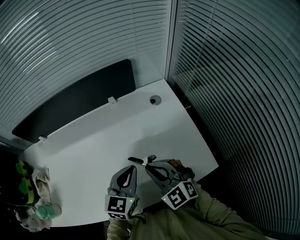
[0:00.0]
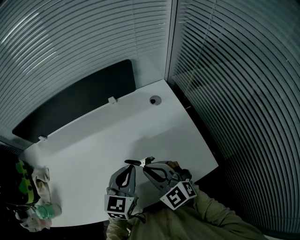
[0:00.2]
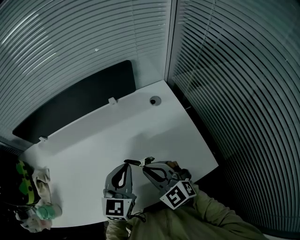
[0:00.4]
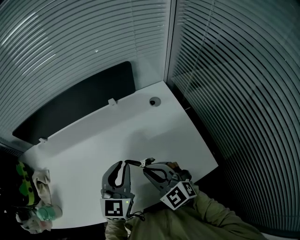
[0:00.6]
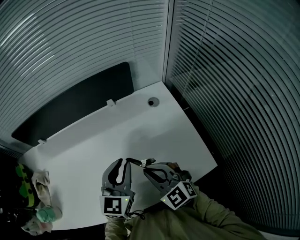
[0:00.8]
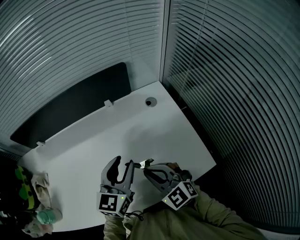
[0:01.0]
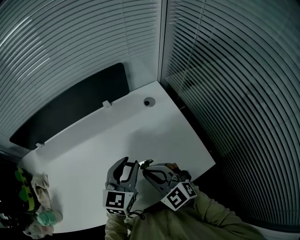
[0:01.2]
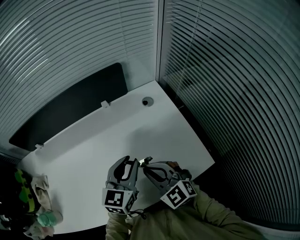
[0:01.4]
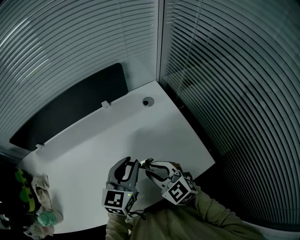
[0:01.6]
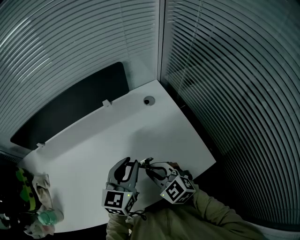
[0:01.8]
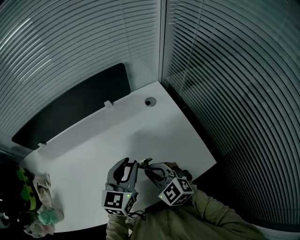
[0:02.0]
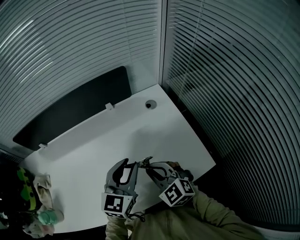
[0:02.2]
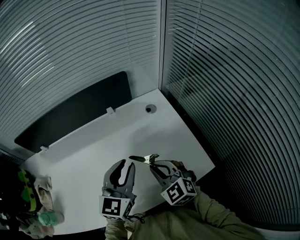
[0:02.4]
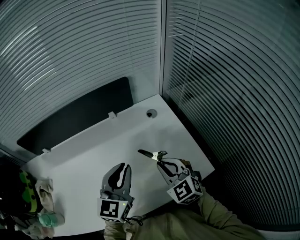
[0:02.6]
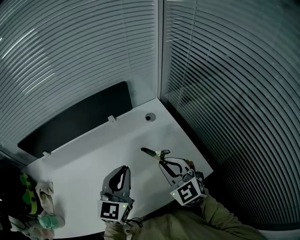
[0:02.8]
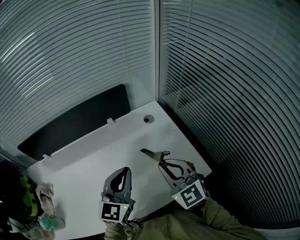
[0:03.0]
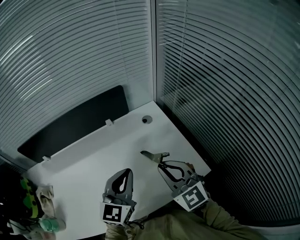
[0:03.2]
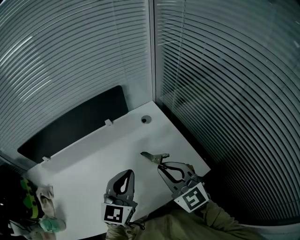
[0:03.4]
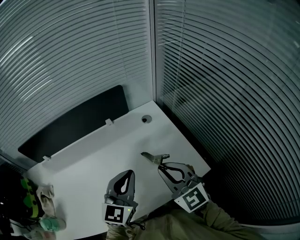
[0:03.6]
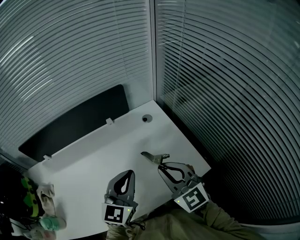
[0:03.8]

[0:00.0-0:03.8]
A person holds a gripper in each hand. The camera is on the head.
0:00.0 to 0:01.2: The left gripper opens up.
0:01.2 to 0:02.6: The right gripper travels to the right by roughly 5 cm, while the left gripper is displaced upward by some 5 cm.
0:02.6 to 0:03.8: The right gripper moves upward, roughly 10 cm.

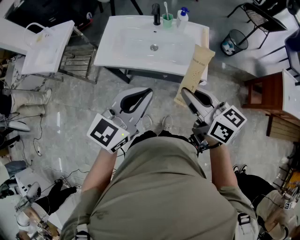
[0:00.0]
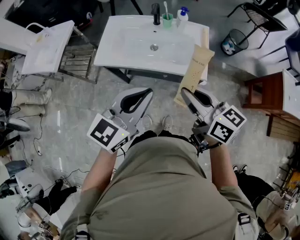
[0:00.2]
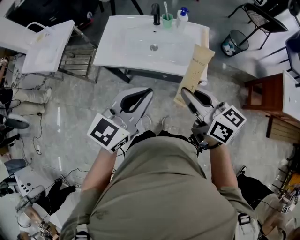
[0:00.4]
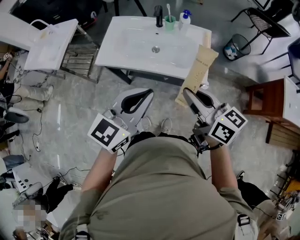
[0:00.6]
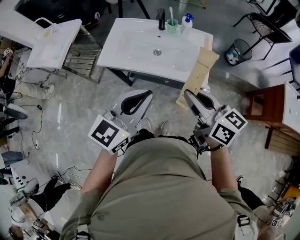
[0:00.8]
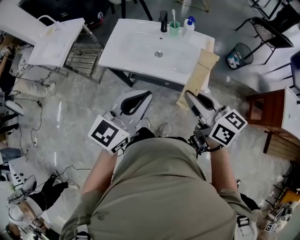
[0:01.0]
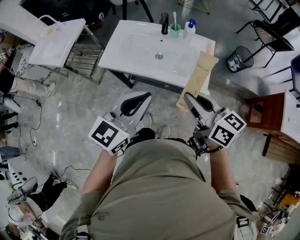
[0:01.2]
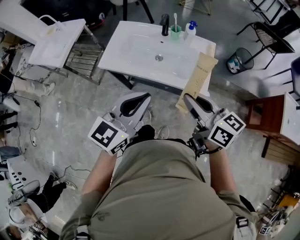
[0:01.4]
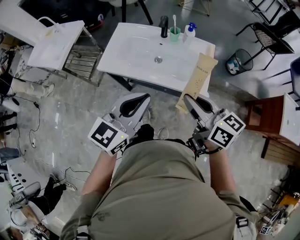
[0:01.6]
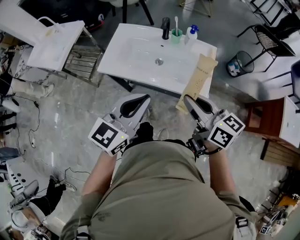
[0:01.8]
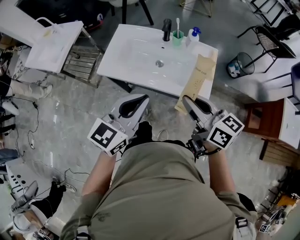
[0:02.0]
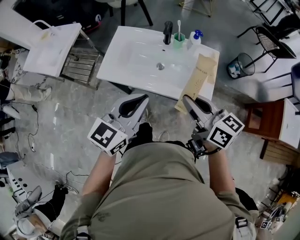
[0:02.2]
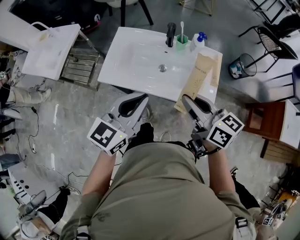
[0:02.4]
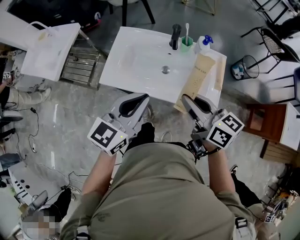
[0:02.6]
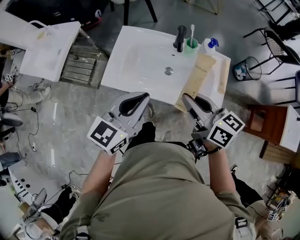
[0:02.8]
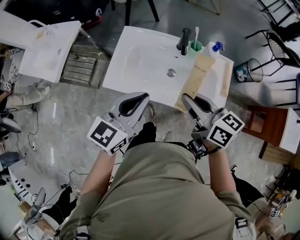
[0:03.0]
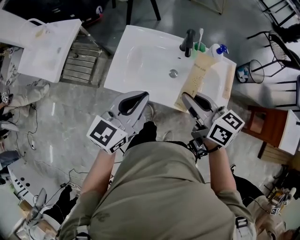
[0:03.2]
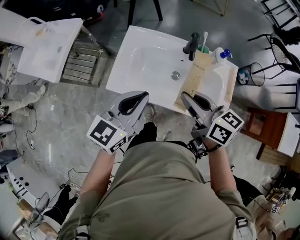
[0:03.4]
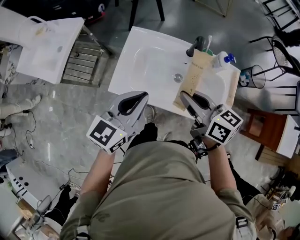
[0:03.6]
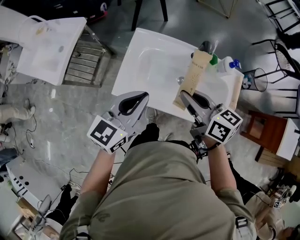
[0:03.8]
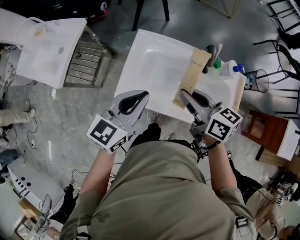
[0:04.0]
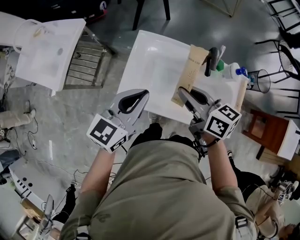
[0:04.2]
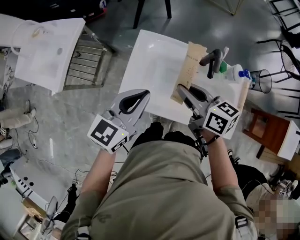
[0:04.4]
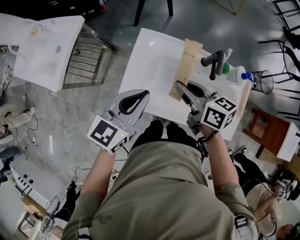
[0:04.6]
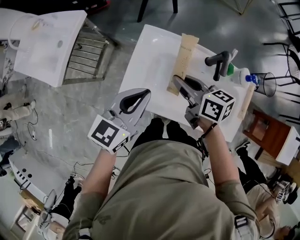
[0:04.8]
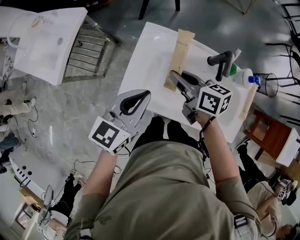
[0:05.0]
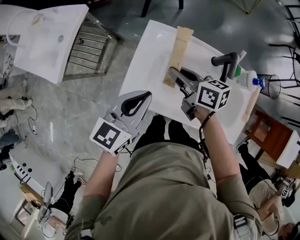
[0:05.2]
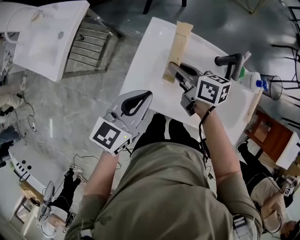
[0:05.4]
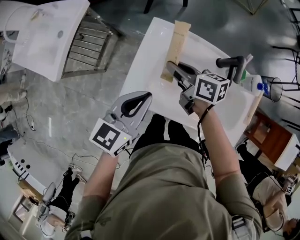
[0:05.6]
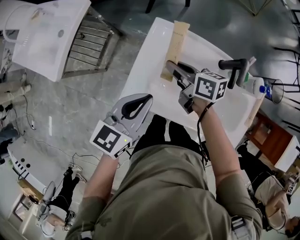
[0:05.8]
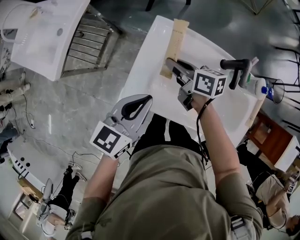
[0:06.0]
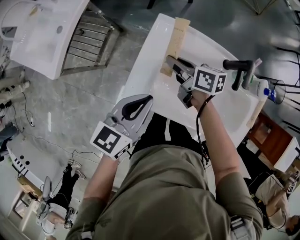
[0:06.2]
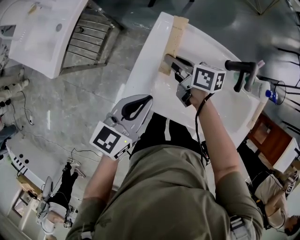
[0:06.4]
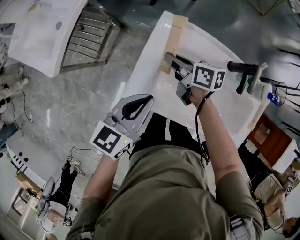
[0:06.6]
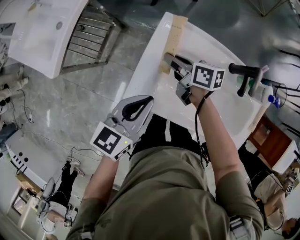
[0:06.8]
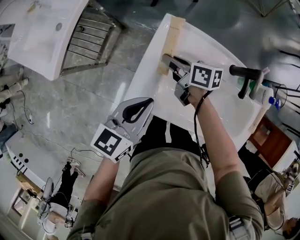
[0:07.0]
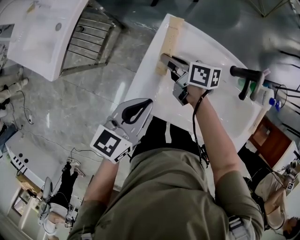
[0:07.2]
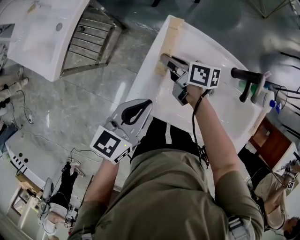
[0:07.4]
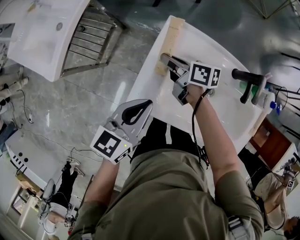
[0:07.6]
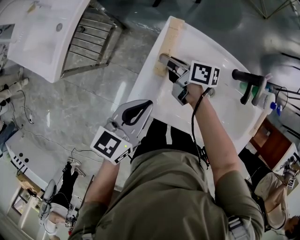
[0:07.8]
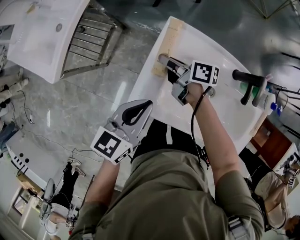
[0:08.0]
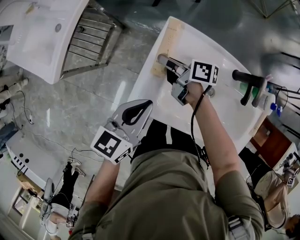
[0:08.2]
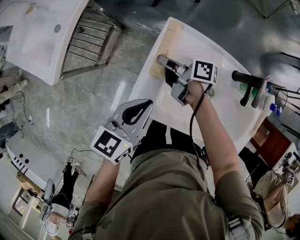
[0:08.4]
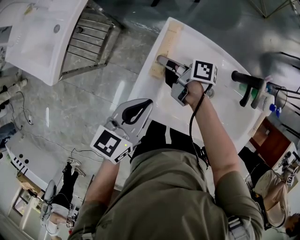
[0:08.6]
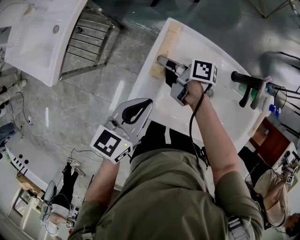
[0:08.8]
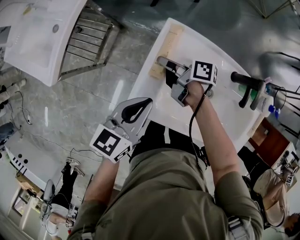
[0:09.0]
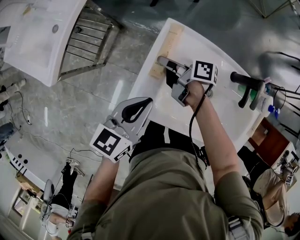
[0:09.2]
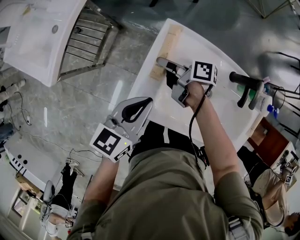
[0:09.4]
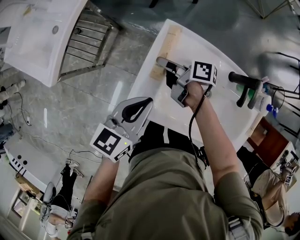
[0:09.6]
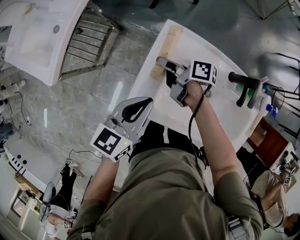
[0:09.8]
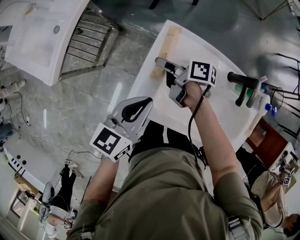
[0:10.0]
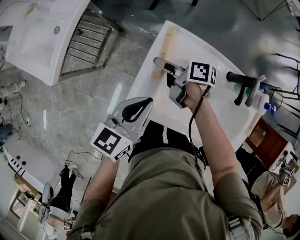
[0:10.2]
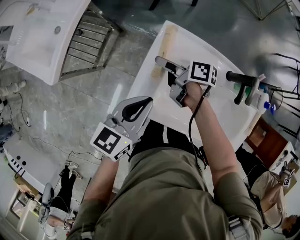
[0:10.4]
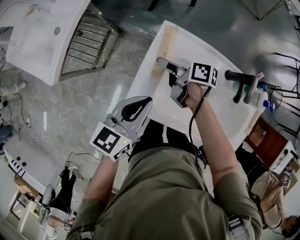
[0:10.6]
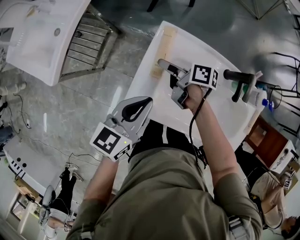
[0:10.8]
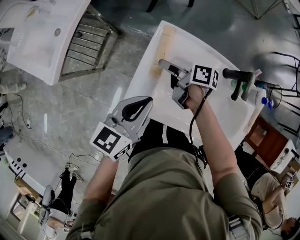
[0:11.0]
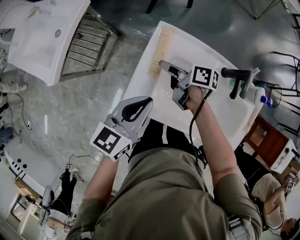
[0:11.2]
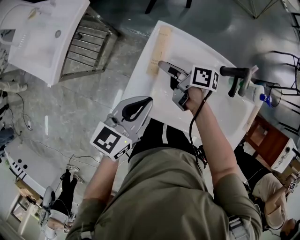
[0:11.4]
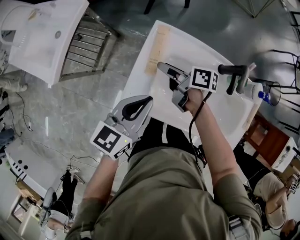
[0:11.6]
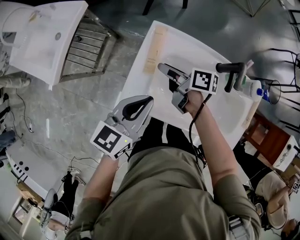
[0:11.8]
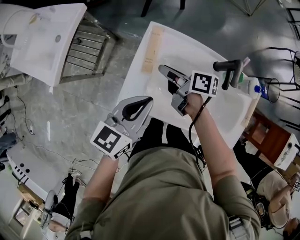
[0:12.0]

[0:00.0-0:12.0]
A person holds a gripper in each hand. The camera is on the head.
0:00.0 to 0:01.6: The right gripper ends up about 5 cm from where it was.
0:01.6 to 0:03.0: Both grippers move forward and to the left, some 20 cm.
0:03.0 to 0:04.4: The grippers both shift forward and to the left by about 20 cm.
0:04.4 to 0:06.0: The right gripper shifts some 20 cm downward, forward and to the left, while the left gripper goes approximately 10 cm downward.
0:06.0 to 0:07.6: The left gripper shifts by about 5 cm. The right gripper heads downward and to the left, covering some 10 cm.
0:07.6 to 0:09.0: The grippers stay close to where they were, moving slightly.
0:09.0 to 0:10.4: The right gripper opens its fingers.
0:10.4 to 0:12.0: The left gripper shifts by approximately 5 cm; the right gripper heads backward and upward, covering roughly 10 cm, and closes up.

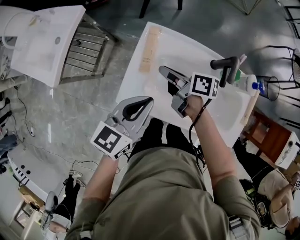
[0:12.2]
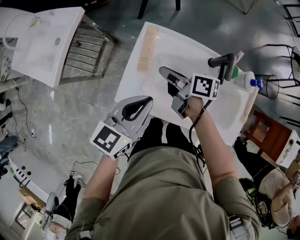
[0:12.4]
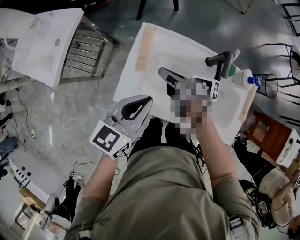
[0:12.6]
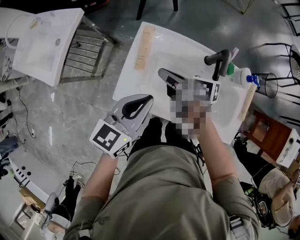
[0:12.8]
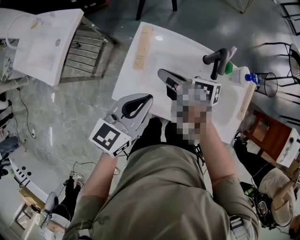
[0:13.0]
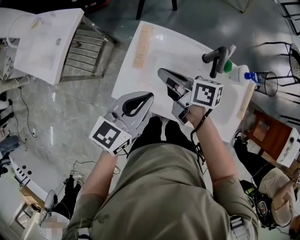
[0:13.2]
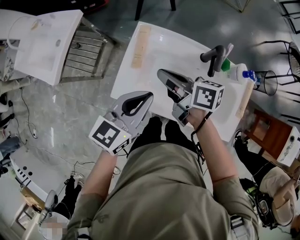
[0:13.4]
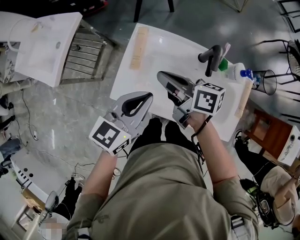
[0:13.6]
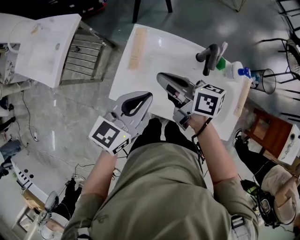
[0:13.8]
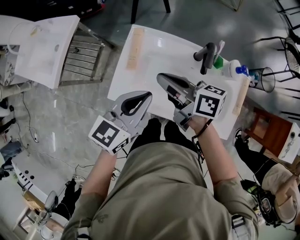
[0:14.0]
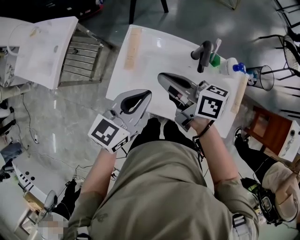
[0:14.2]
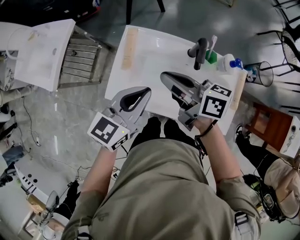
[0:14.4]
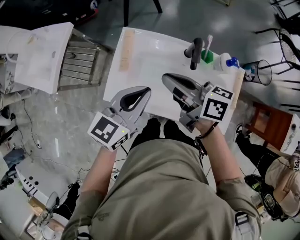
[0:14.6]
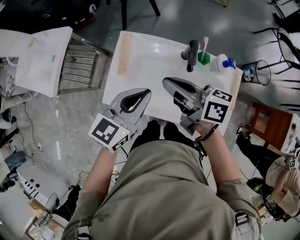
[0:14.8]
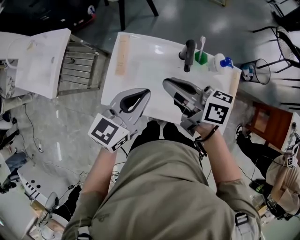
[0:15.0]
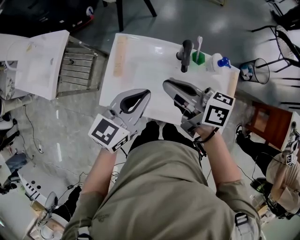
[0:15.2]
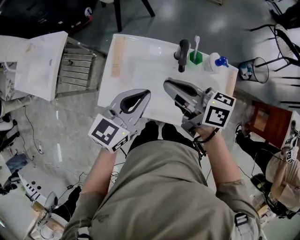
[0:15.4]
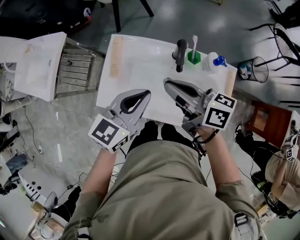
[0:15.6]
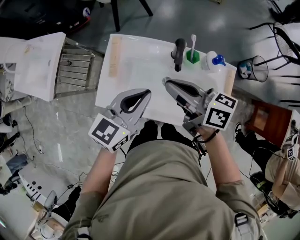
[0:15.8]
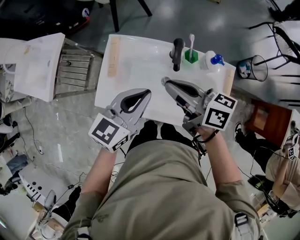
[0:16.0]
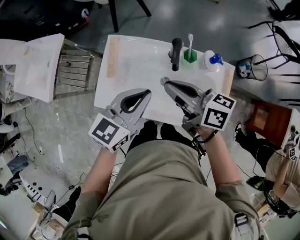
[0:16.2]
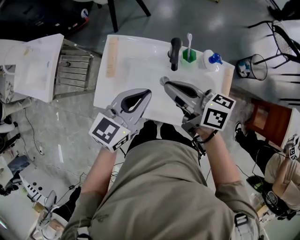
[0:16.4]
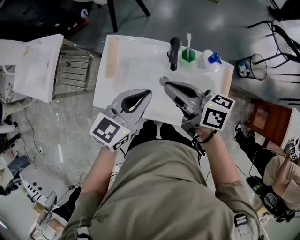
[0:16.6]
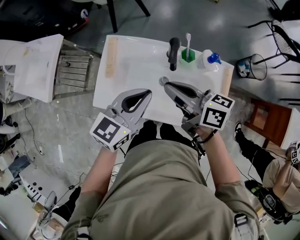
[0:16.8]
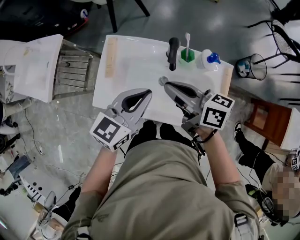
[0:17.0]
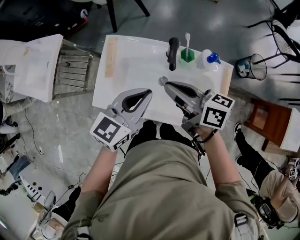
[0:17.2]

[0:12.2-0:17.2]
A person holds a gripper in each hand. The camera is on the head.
0:12.2 to 0:13.8: The left gripper is displaced to the right by some 5 cm; the right gripper is displaced upward and backward by some 15 cm.
0:13.8 to 0:15.6: The left gripper shifts some 10 cm to the right, while the right gripper goes about 15 cm to the right and upward.
0:15.6 to 0:17.2: The grippers move only a little.

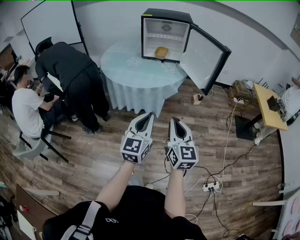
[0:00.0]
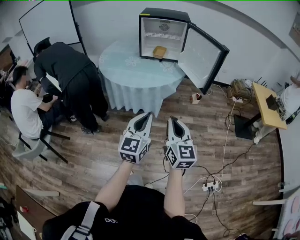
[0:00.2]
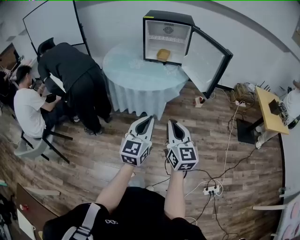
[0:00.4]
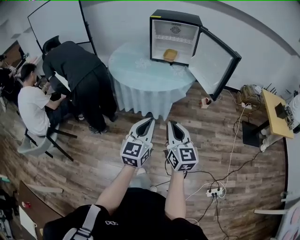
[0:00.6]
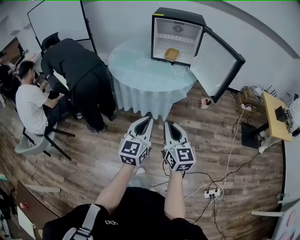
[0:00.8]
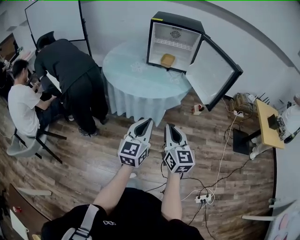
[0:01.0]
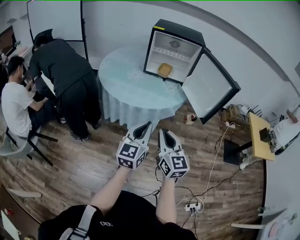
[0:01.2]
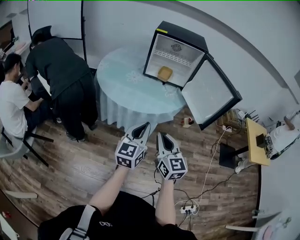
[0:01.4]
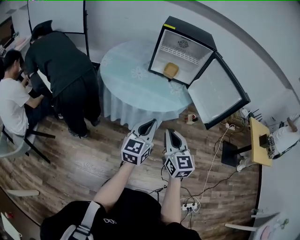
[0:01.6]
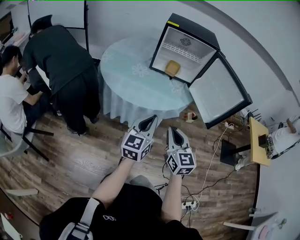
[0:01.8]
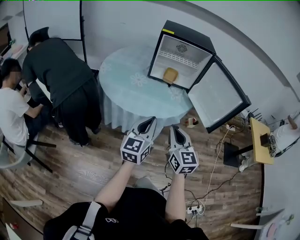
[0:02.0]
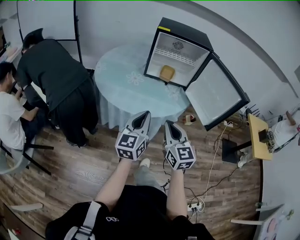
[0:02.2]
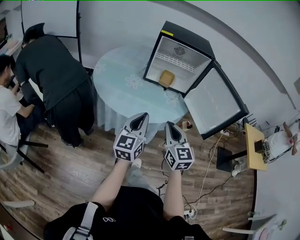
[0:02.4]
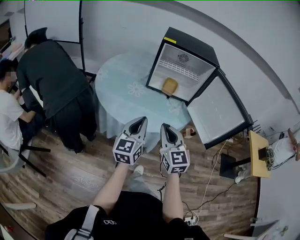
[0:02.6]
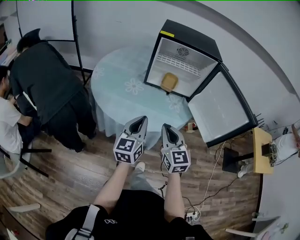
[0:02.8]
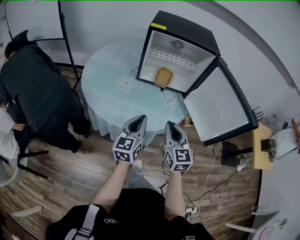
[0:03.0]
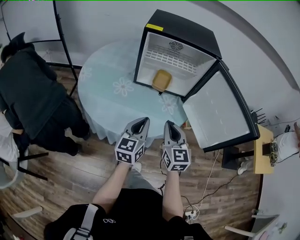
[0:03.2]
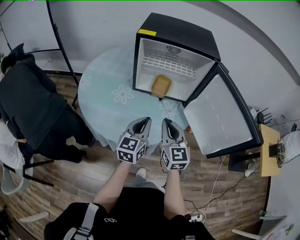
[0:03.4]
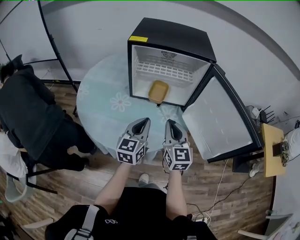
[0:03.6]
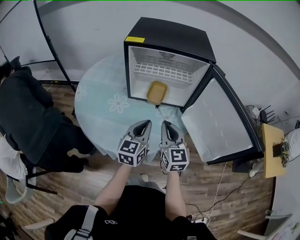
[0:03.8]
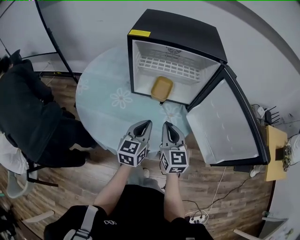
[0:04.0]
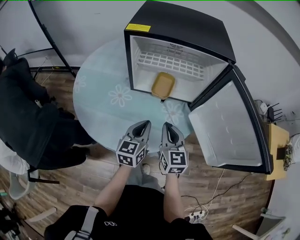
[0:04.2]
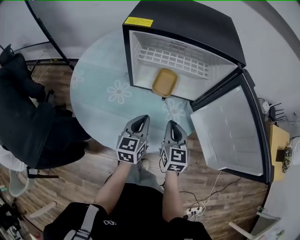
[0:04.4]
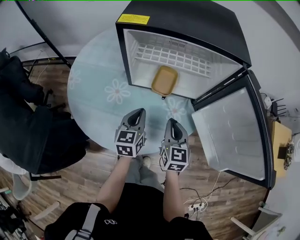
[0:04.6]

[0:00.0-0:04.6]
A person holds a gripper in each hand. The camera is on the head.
0:00.0 to 0:01.6: The left gripper moves forward, roughly 20 cm, while the right gripper travels forward and to the left by some 20 cm.
0:01.6 to 0:03.0: Both grippers move forward, roughly 25 cm.
0:03.0 to 0:04.6: The grippers both shift forward and downward by approximately 25 cm.
